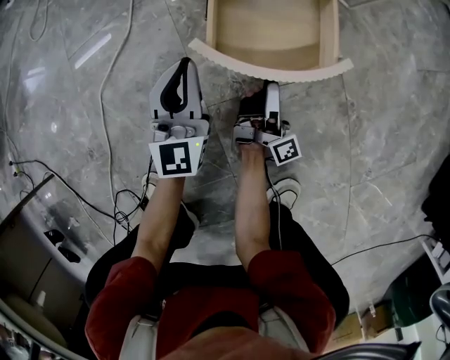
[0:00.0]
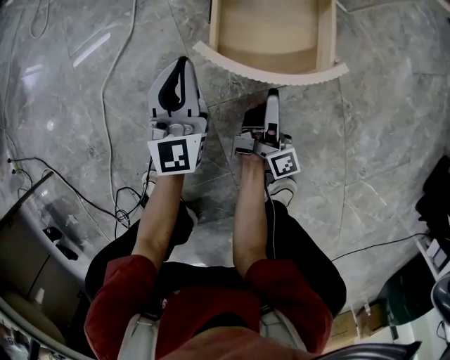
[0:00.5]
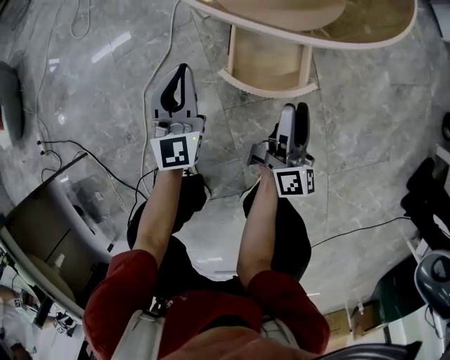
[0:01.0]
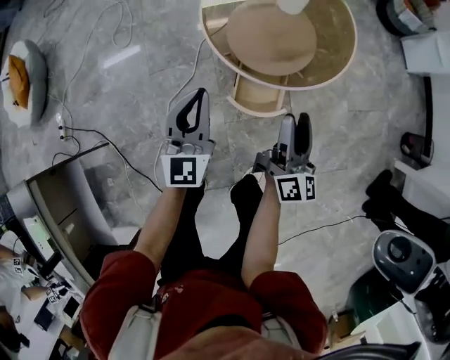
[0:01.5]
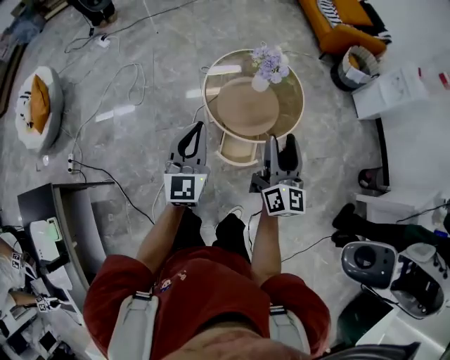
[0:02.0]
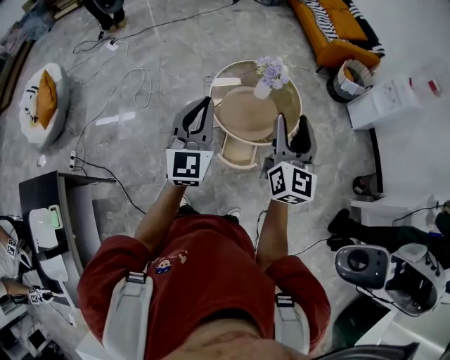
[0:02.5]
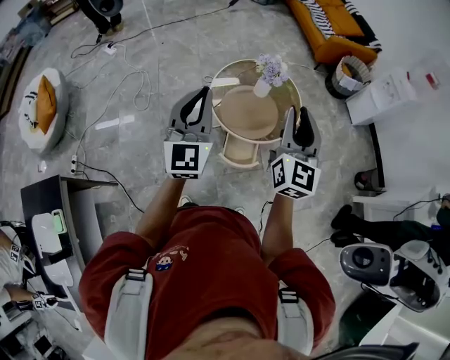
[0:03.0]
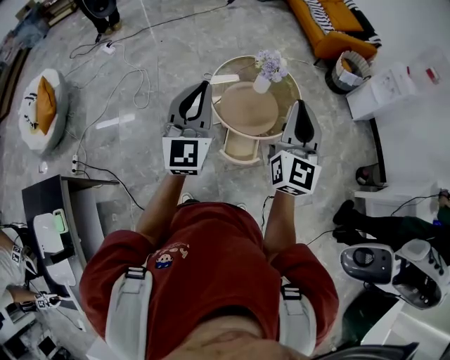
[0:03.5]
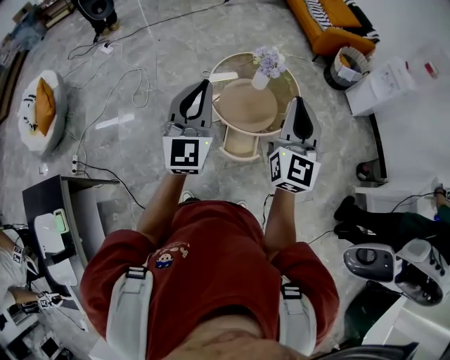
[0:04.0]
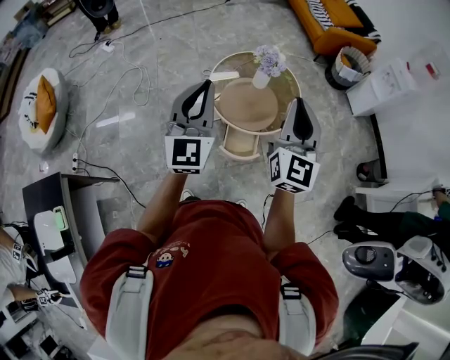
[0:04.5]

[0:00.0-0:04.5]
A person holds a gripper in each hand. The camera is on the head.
0:00.0 to 0:02.0: Both grippers move upward, approximately 80 cm. The right gripper twists approximately 60 degrees counterclockwise, seen from behind.
0:02.0 to 0:04.5: Both grippers move upward, about 15 cm. The right gripper changes its angle by approximately 30 degrees, and closes up.

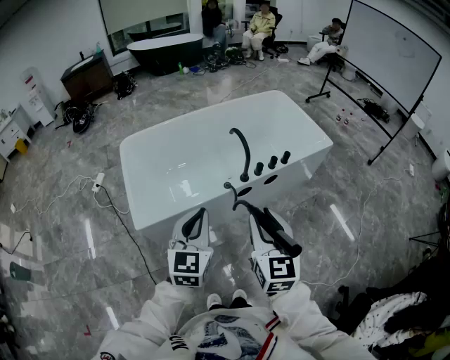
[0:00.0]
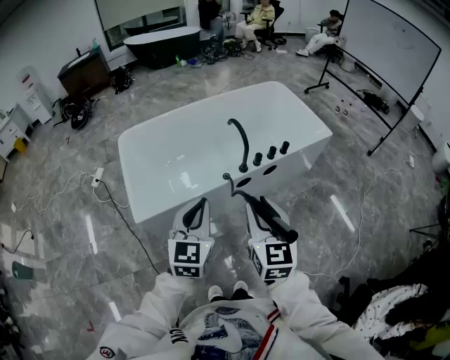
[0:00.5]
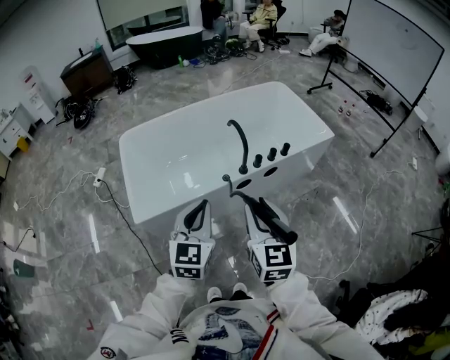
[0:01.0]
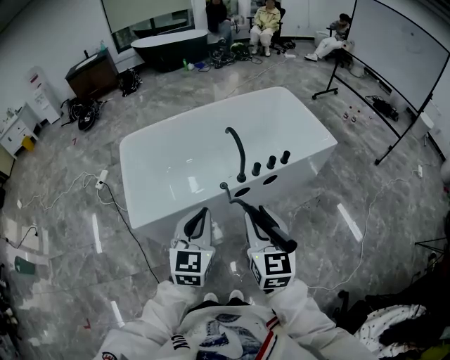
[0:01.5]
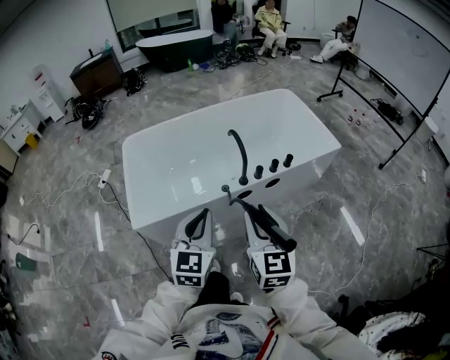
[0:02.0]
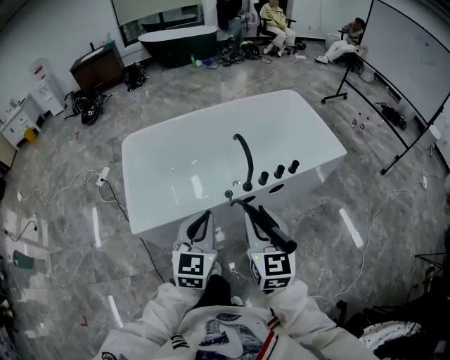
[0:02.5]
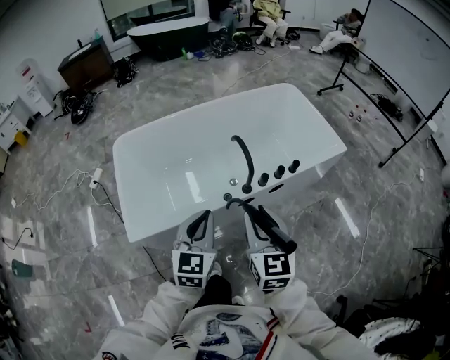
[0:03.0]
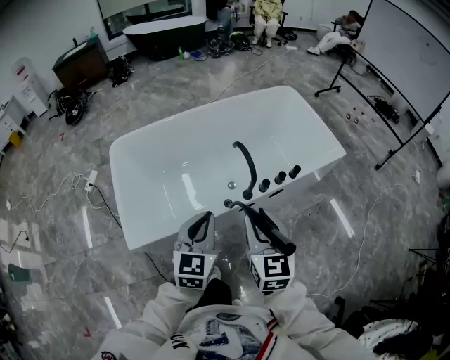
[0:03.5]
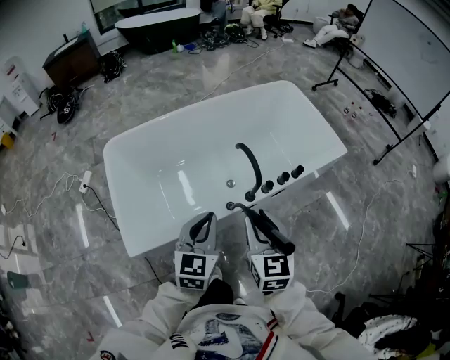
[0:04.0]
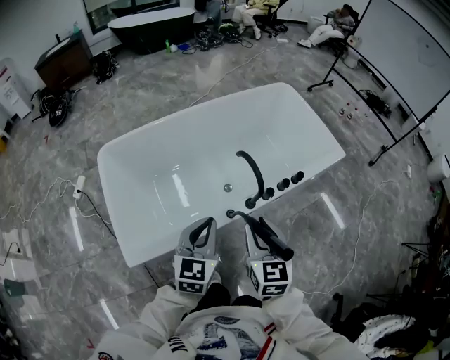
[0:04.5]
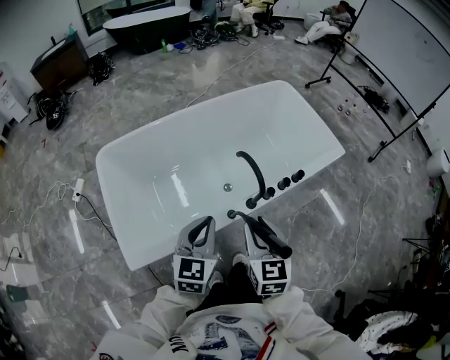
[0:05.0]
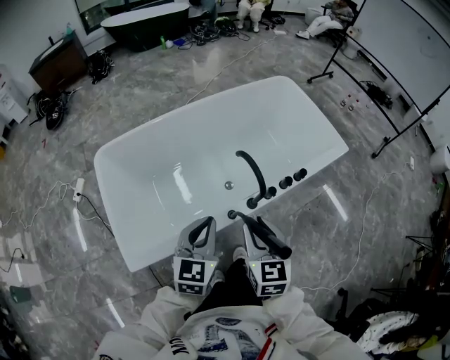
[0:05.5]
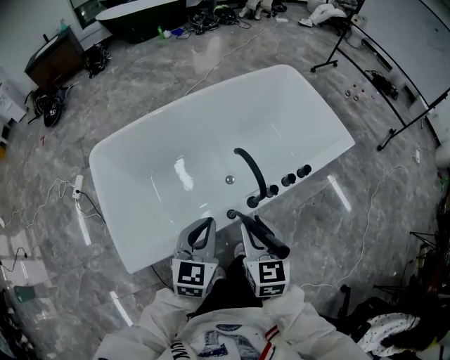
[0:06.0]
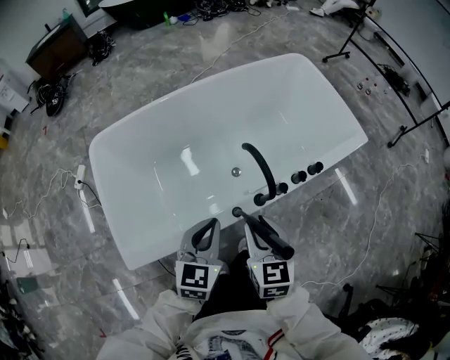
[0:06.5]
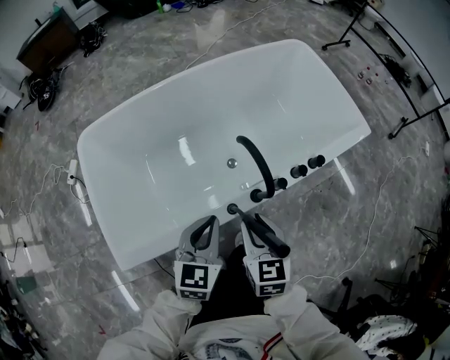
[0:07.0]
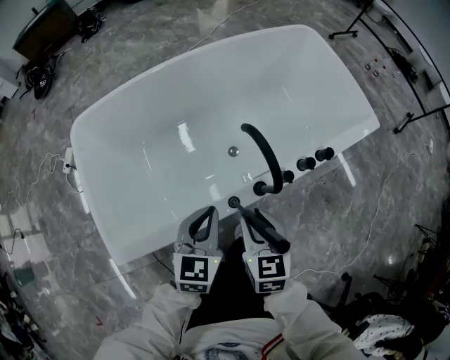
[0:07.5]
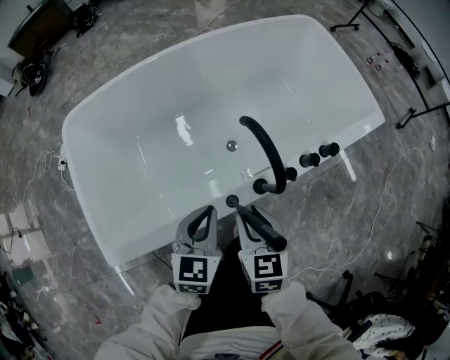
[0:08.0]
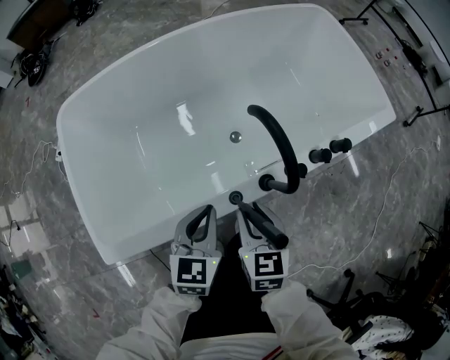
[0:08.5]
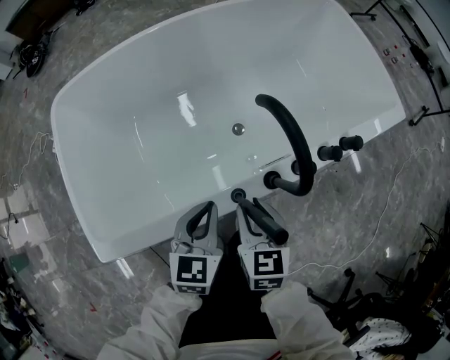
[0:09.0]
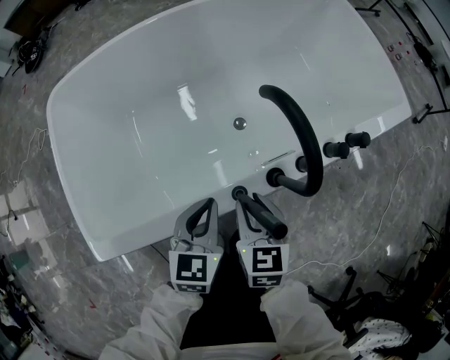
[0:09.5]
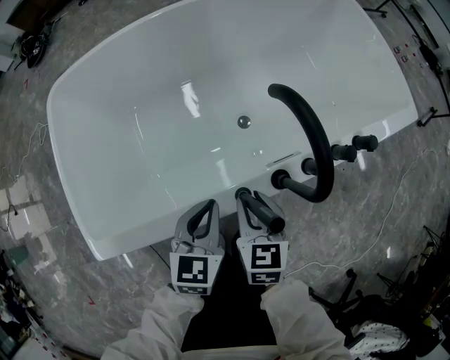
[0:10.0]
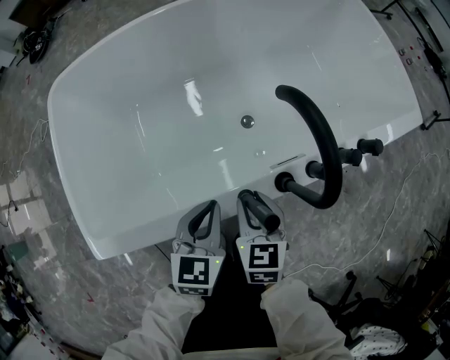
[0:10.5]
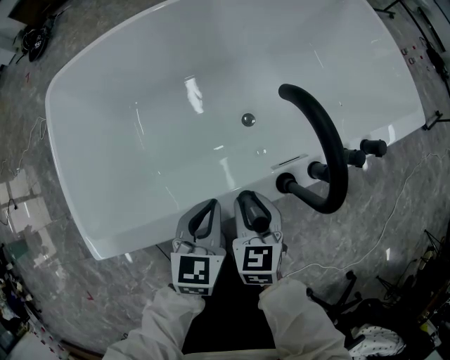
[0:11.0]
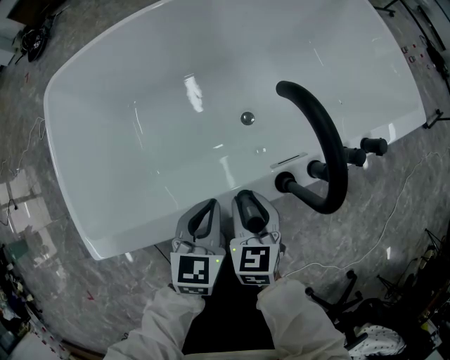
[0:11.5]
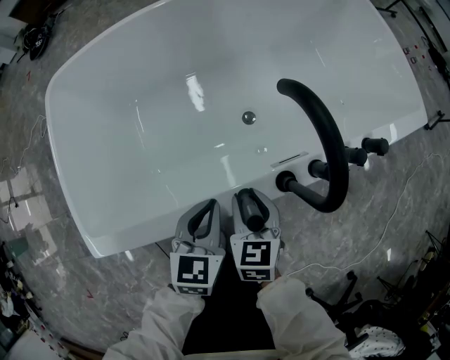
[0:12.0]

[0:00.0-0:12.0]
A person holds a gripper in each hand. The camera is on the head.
0:00.0 to 0:02.0: The right gripper heads forward, covering approximately 5 cm, while the left gripper shifts some 5 cm to the right.
0:02.0 to 0:04.0: The left gripper is displaced forward and downward by some 20 cm, while the right gripper is displaced forward and to the left by roughly 20 cm.
0:04.0 to 0:06.0: The left gripper is displaced forward and downward by about 10 cm. The right gripper is displaced downward and forward by approximately 10 cm.
0:06.0 to 0:08.0: The grippers both shift downward by approximately 15 cm.
0:08.0 to 0:10.0: The grippers both shift downward by about 10 cm.
0:10.0 to 0:12.0: The grippers make only small movements.

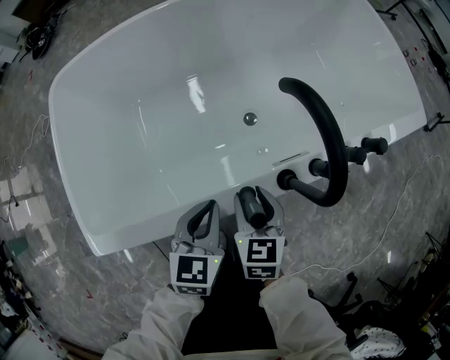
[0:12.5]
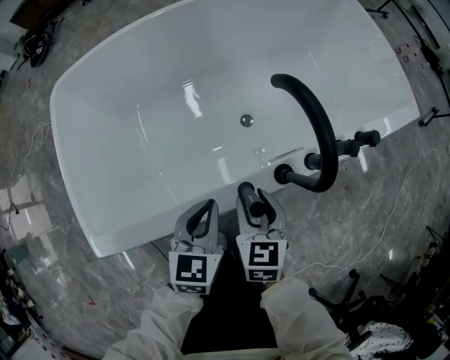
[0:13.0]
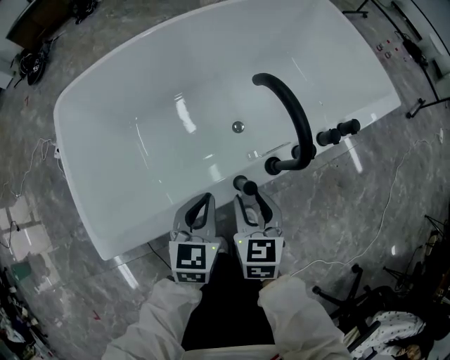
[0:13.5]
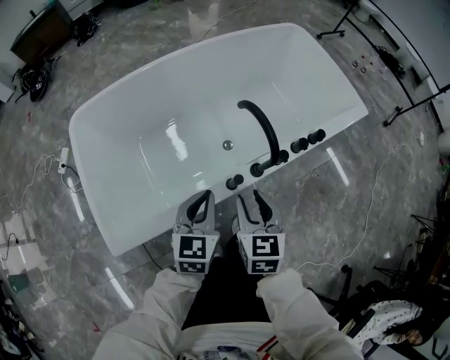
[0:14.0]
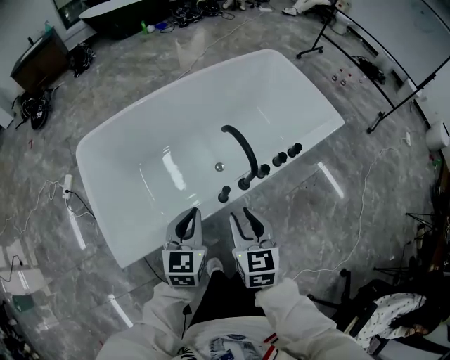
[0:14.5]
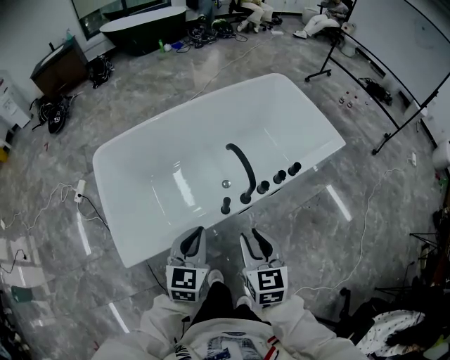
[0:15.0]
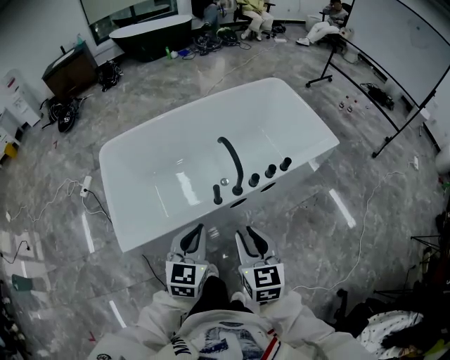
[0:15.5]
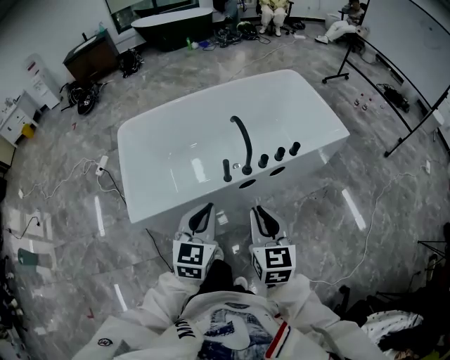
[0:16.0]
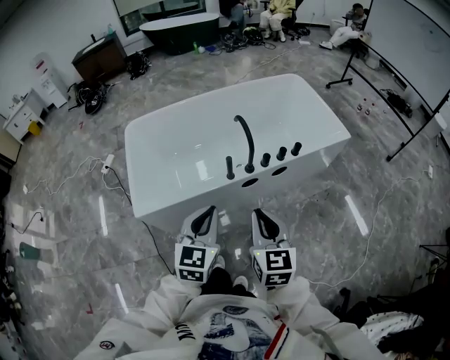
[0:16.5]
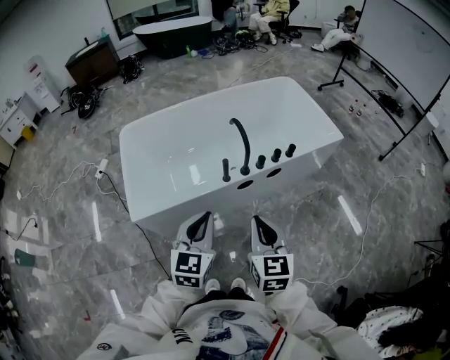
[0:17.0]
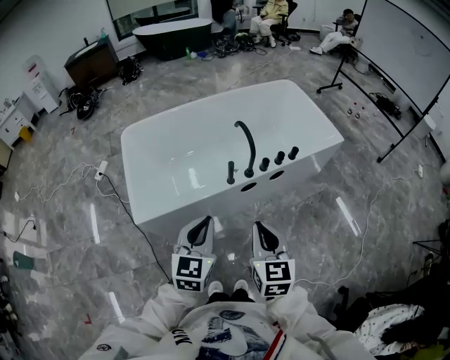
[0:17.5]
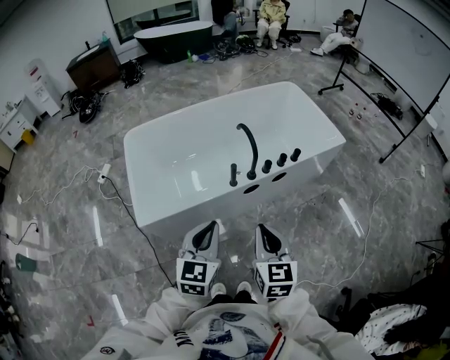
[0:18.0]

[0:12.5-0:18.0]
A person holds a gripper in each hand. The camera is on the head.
0:12.5 to 0:14.5: Both grippers travel together upward, about 25 cm.
0:14.5 to 0:16.0: Both grippers move backward, upward and to the right, some 20 cm. The right gripper closes up.
0:16.0 to 0:18.0: Both grippers travel together backward, about 5 cm.

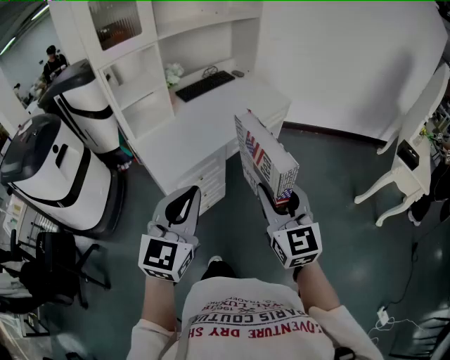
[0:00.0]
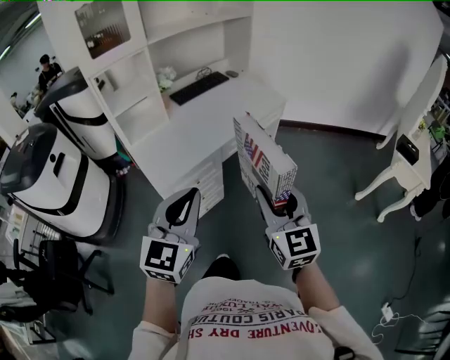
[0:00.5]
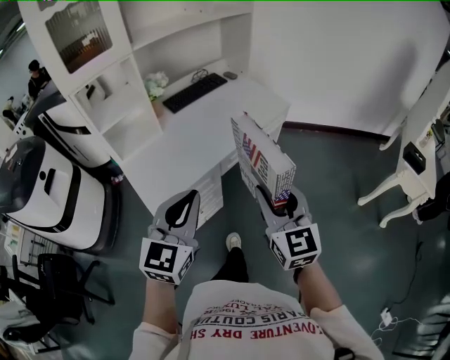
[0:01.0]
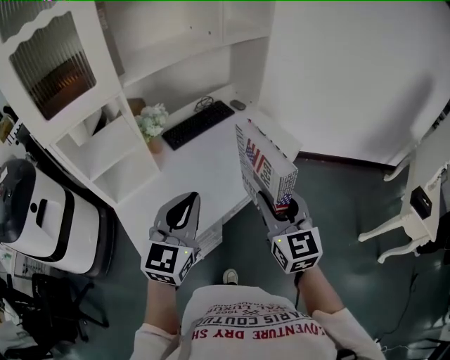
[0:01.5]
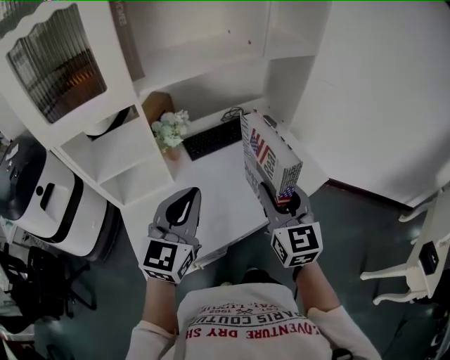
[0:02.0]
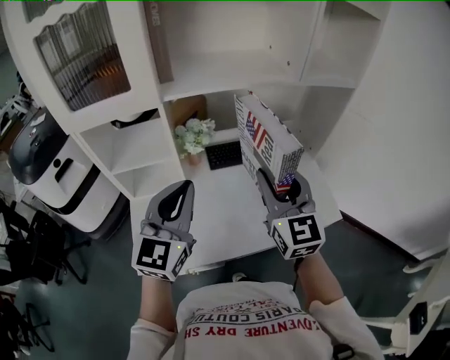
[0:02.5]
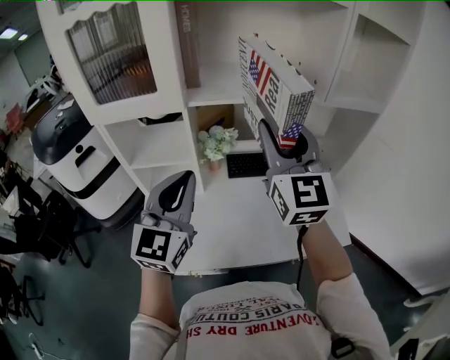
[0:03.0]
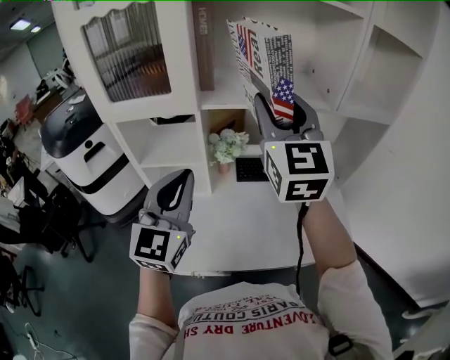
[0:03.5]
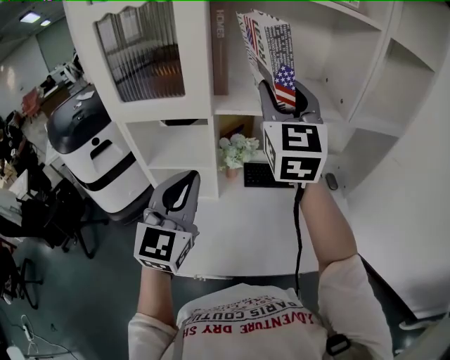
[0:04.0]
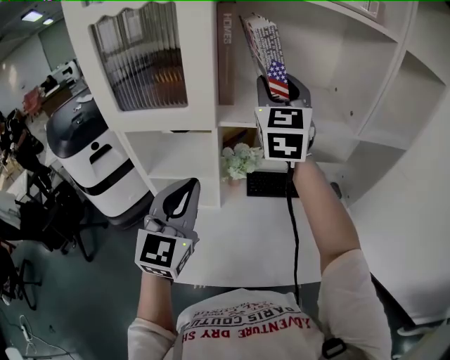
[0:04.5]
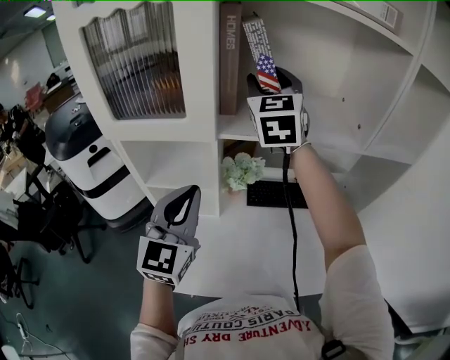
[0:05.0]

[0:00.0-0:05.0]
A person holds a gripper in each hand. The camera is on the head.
0:00.0 to 0:02.5: The pair of grippers is taken roughly 60 cm. The right gripper swivels some 30 degrees. Meanwhile the left gripper changes its angle by roughly 30 degrees.
0:02.5 to 0:05.0: The left gripper goes about 15 cm forward and to the left; the right gripper moves forward, upward and to the left, some 40 cm.
